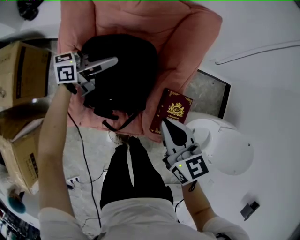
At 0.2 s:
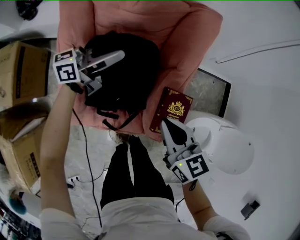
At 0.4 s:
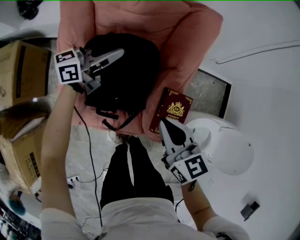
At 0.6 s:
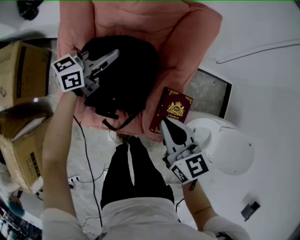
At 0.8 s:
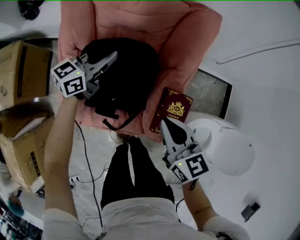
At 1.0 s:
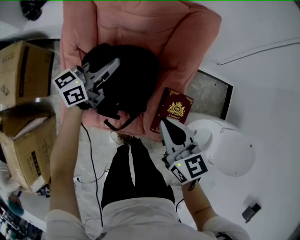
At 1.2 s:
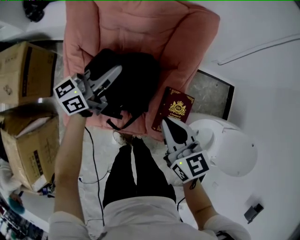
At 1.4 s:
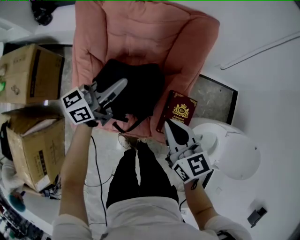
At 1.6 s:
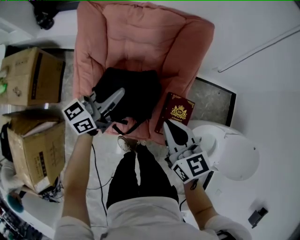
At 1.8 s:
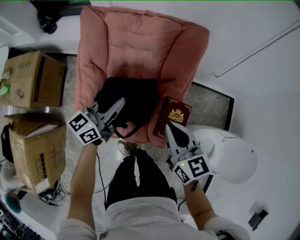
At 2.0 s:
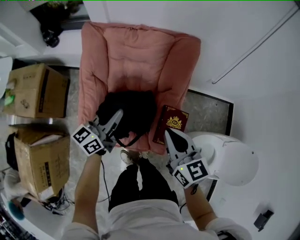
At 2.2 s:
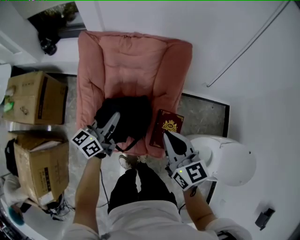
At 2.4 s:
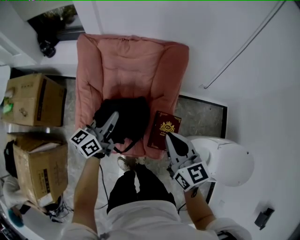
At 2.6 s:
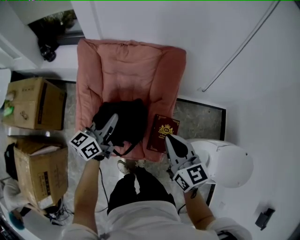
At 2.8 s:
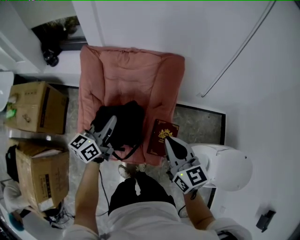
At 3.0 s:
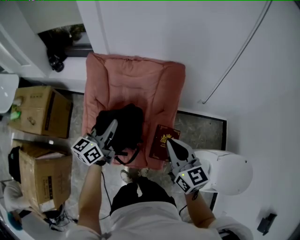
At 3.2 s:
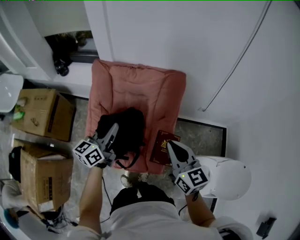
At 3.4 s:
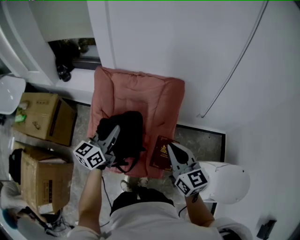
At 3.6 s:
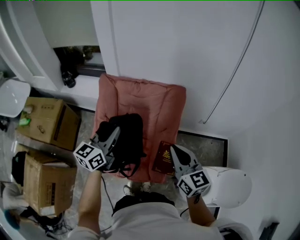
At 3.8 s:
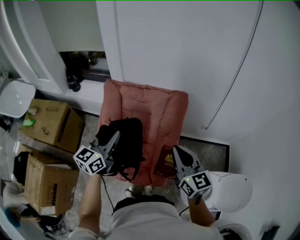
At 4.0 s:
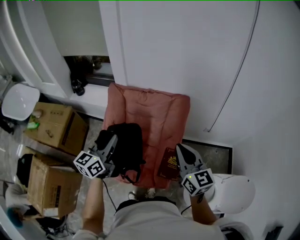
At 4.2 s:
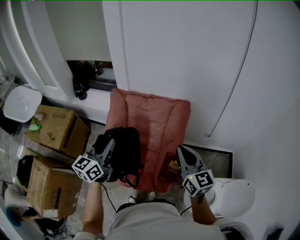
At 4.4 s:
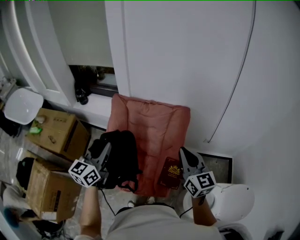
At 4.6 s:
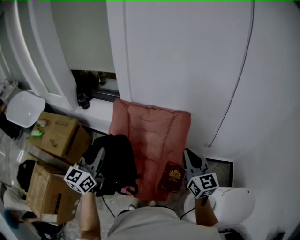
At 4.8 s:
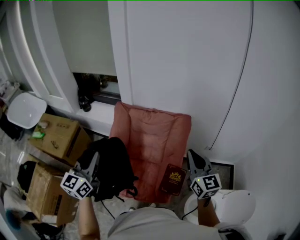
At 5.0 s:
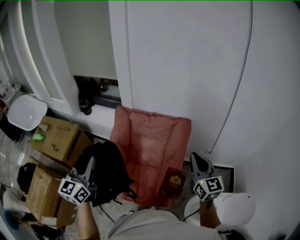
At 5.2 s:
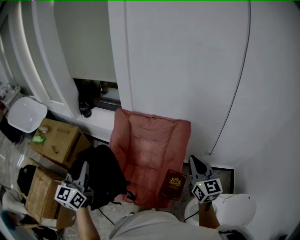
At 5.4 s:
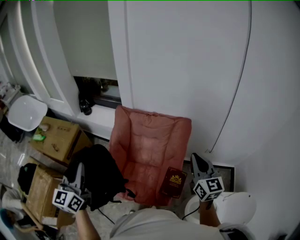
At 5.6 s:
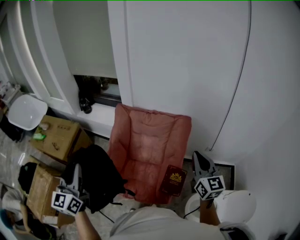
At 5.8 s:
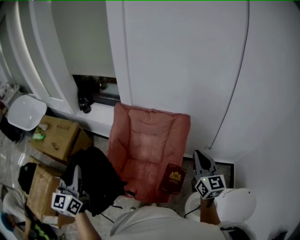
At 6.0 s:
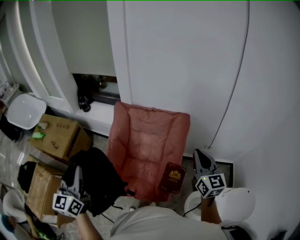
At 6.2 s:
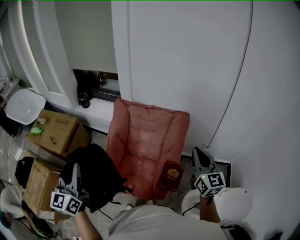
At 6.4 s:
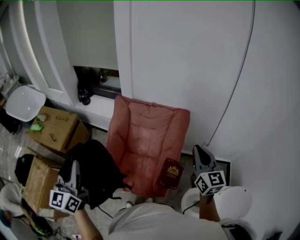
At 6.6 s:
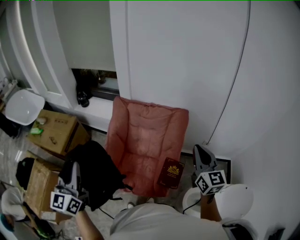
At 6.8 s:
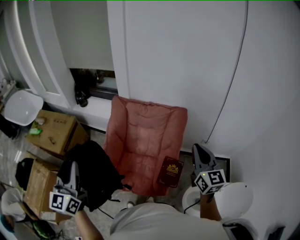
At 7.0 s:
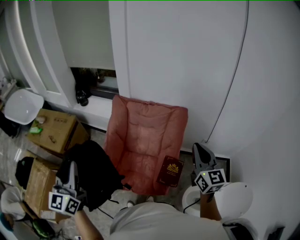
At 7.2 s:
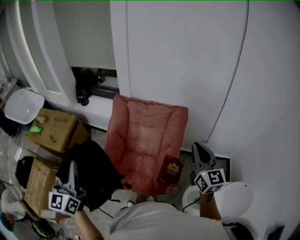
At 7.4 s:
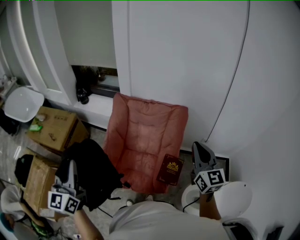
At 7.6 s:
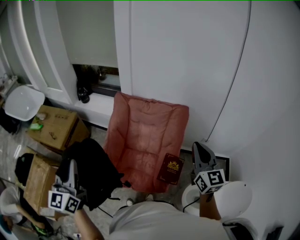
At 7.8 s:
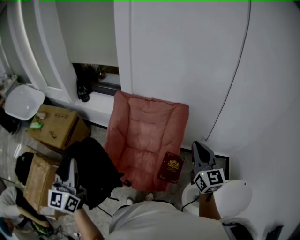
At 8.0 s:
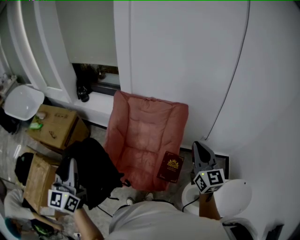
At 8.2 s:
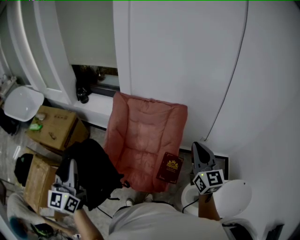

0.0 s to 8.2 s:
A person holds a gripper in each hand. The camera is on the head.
0.0 to 1.6 s: The left gripper travels backward and upward by about 15 cm, changes its angle by about 20 degrees, and closes up.
1.6 to 3.2 s: Both grippers move upward, roughly 15 cm.
3.2 to 5.0 s: The left gripper heads upward, to the left and backward, covering roughly 25 cm, and swivels some 30 degrees; the right gripper is displaced upward and to the right by some 15 cm.
5.0 to 6.6 s: The left gripper is displaced backward and to the left by some 10 cm.
6.6 to 8.2 s: There are only small adjustments of the grippers.

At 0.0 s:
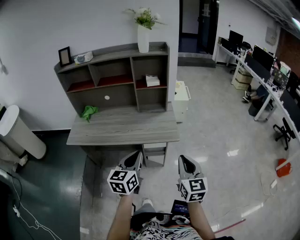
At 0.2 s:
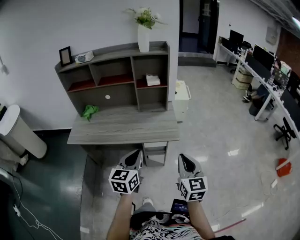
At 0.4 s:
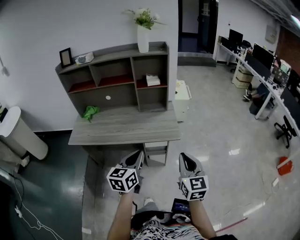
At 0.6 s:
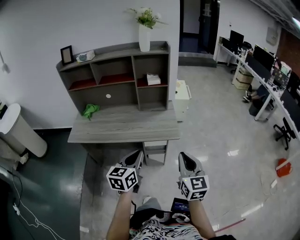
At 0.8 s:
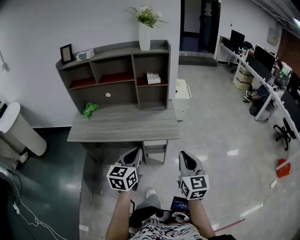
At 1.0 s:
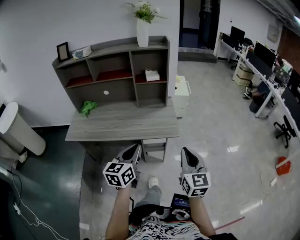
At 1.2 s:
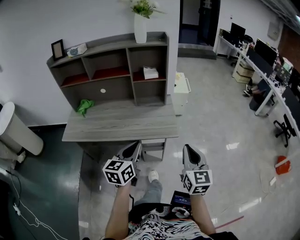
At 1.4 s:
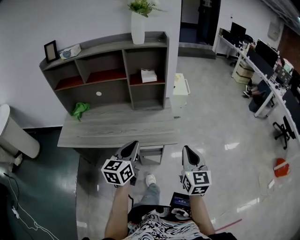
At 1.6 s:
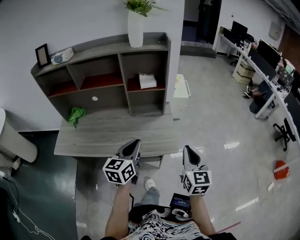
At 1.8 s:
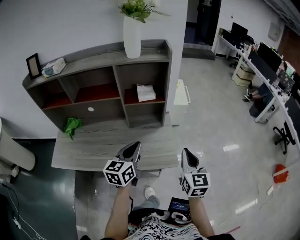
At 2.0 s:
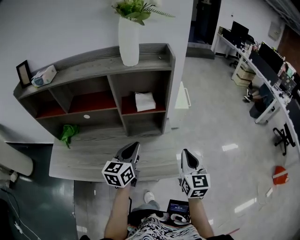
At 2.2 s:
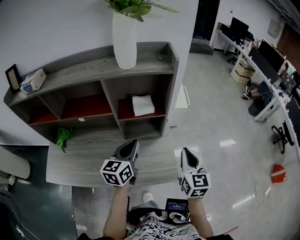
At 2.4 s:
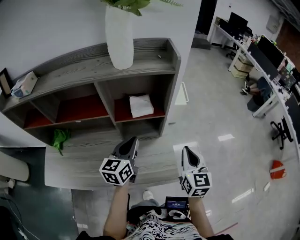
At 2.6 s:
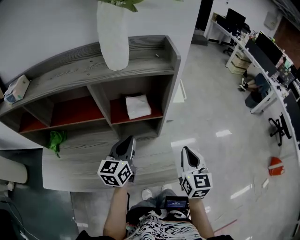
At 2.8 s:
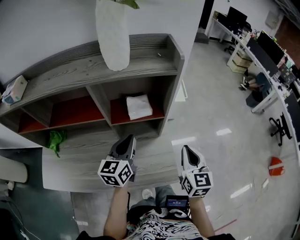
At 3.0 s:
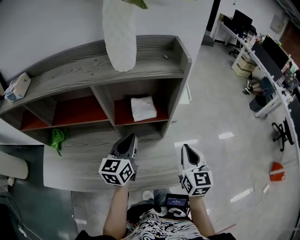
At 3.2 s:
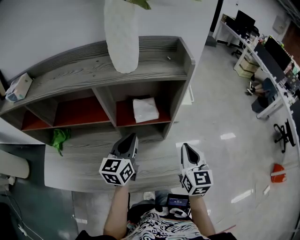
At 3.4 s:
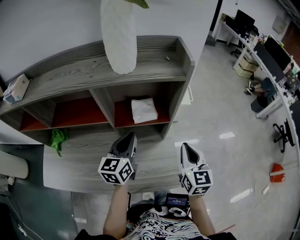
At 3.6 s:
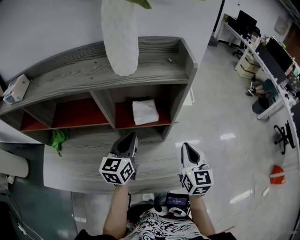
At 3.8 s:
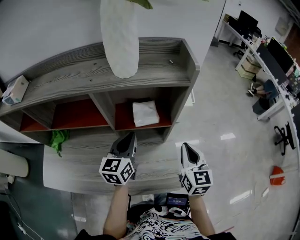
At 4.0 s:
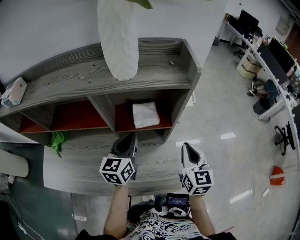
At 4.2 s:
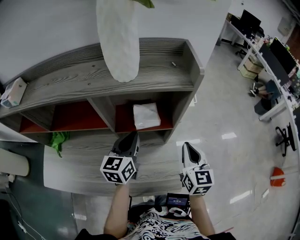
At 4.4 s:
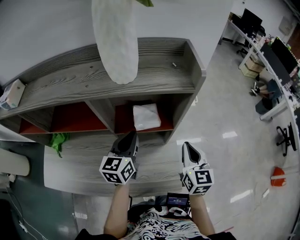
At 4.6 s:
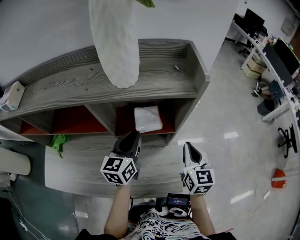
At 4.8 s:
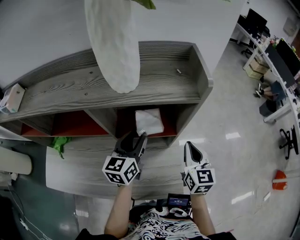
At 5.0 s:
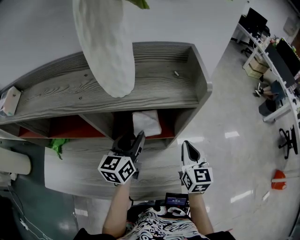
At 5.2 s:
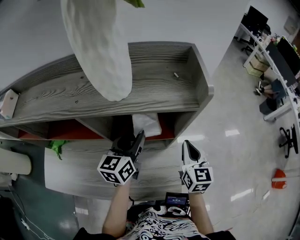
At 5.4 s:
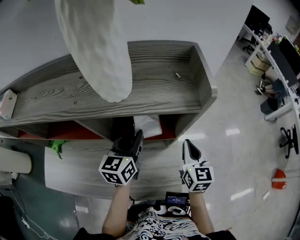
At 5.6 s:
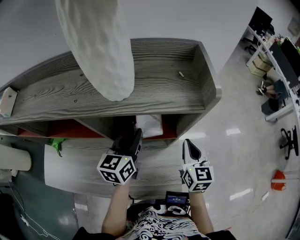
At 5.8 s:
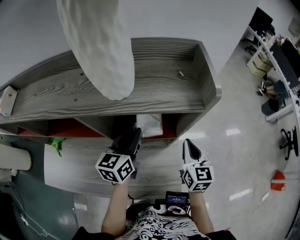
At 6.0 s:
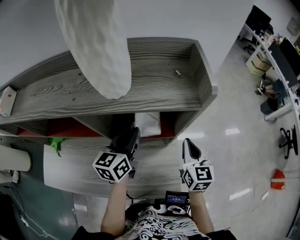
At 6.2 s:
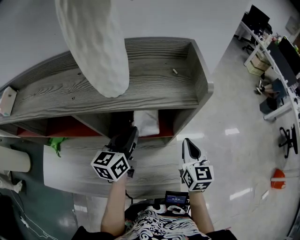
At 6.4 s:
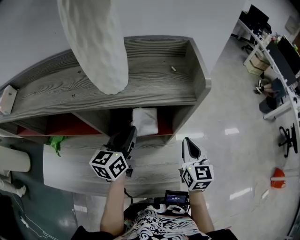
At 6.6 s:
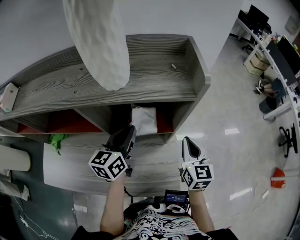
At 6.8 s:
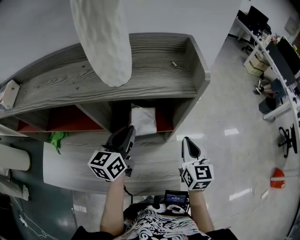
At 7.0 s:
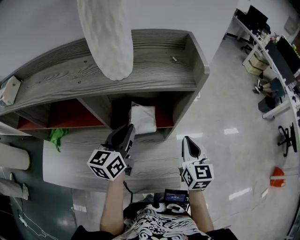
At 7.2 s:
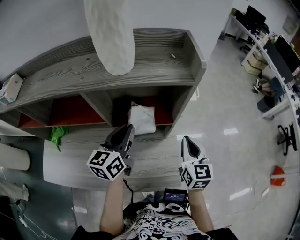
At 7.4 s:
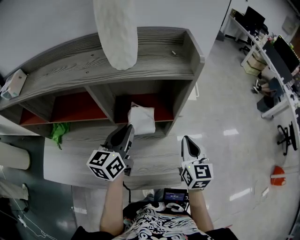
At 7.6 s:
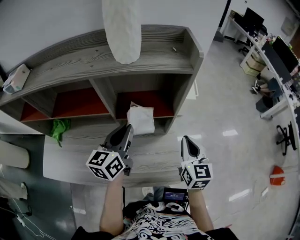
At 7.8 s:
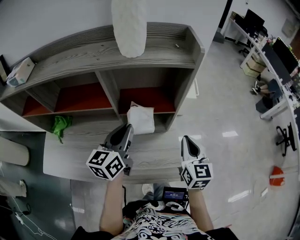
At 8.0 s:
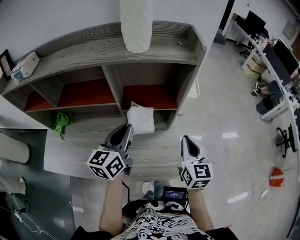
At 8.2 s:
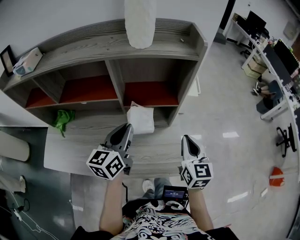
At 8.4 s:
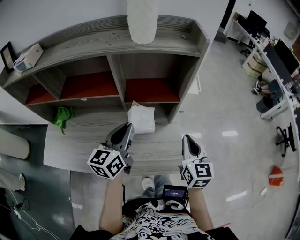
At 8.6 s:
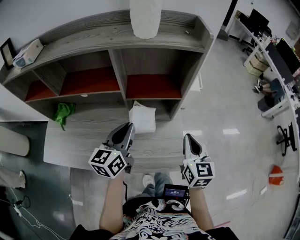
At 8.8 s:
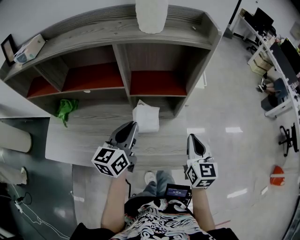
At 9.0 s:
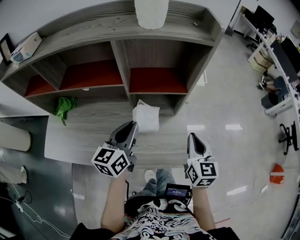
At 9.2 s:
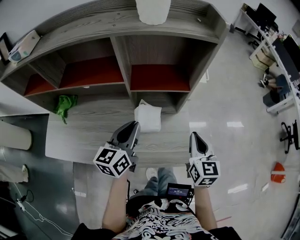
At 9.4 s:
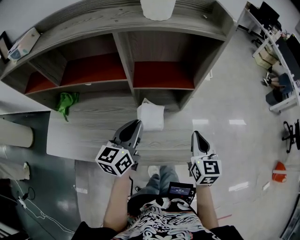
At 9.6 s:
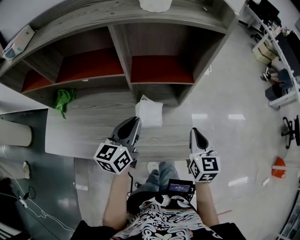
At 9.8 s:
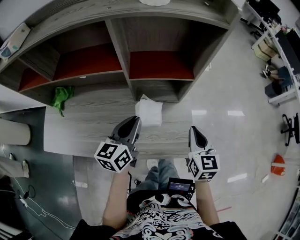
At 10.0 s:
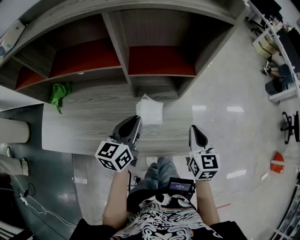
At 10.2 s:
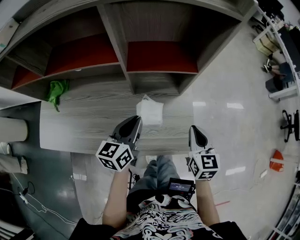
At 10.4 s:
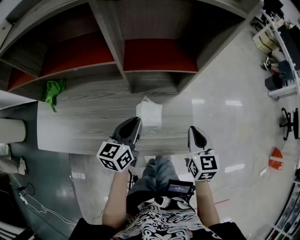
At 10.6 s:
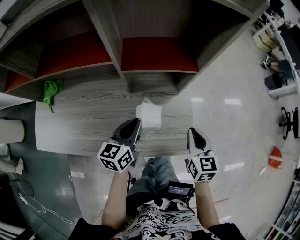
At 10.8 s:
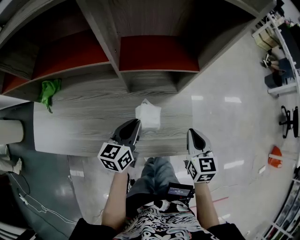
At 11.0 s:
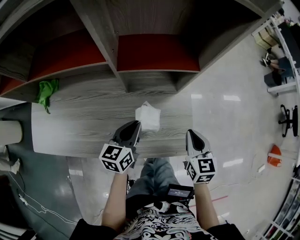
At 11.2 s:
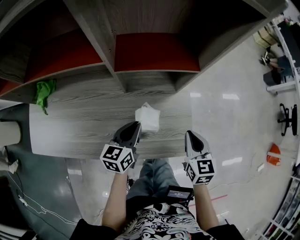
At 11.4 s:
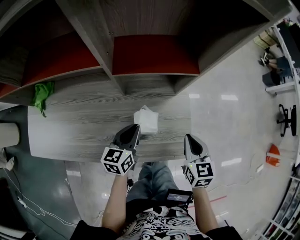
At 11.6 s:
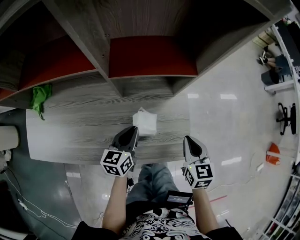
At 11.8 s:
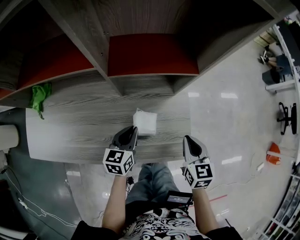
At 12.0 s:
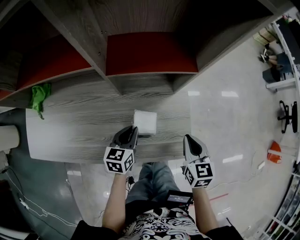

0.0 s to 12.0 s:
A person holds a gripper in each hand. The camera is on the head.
0.0 to 1.6 s: The grippers both shift forward by approximately 20 cm.
1.6 to 3.0 s: Both grippers move forward, some 25 cm.
3.0 to 4.4 s: The grippers both shift forward by some 5 cm.
4.4 to 6.0 s: The two grippers go roughly 5 cm forward. The left gripper opens and closes again.
6.0 to 7.6 s: Both grippers move backward, approximately 10 cm.
7.6 to 9.0 s: Both grippers travel together backward, roughly 10 cm.
9.0 to 10.4 s: Both grippers travel together downward, roughly 10 cm.
10.4 to 12.0 s: The right gripper travels downward by about 5 cm. The left gripper moves downward, some 15 cm.

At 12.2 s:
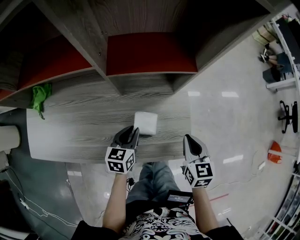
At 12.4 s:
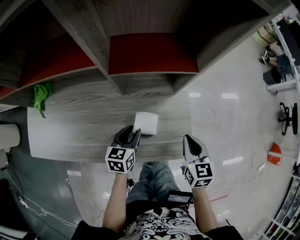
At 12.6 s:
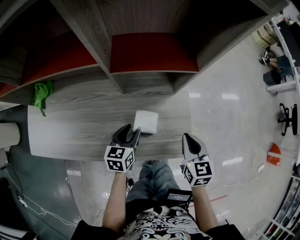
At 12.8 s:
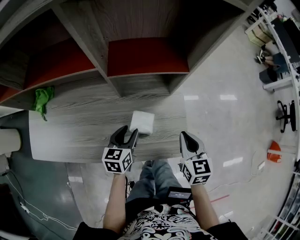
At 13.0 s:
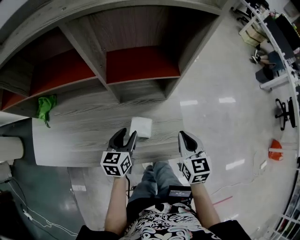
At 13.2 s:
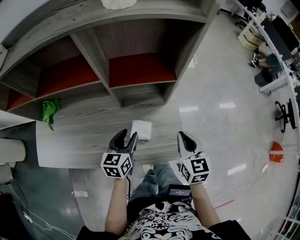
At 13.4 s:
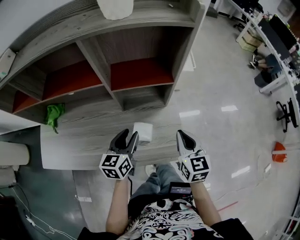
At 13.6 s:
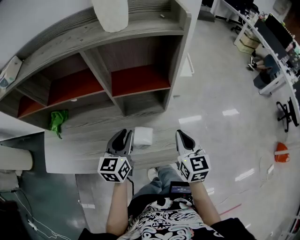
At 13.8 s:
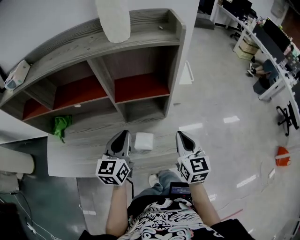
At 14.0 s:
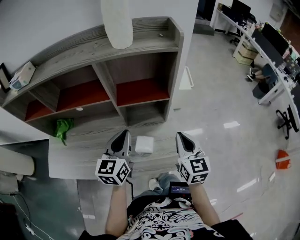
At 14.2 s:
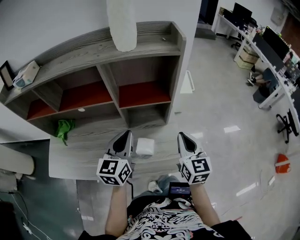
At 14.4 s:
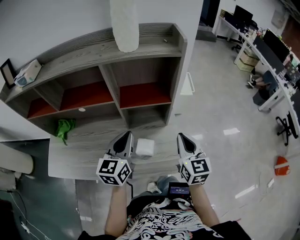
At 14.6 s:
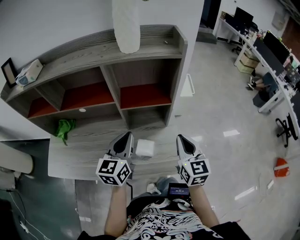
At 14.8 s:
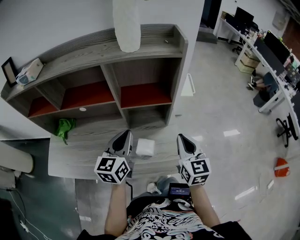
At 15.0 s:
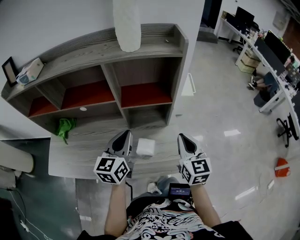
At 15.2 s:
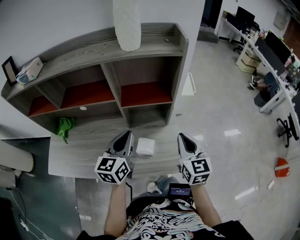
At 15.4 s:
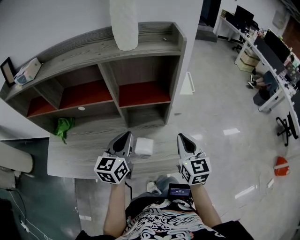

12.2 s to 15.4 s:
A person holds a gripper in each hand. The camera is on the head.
12.2 to 13.8 s: The right gripper goes roughly 15 cm upward. Meanwhile the left gripper heads upward, covering roughly 25 cm, swivels approximately 30 degrees, and opens and closes again.
13.8 to 15.4 s: The grippers stay close to where they were, moving slightly.
